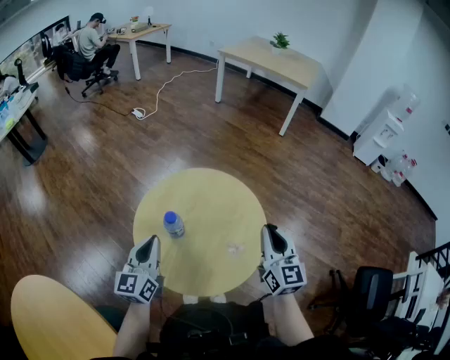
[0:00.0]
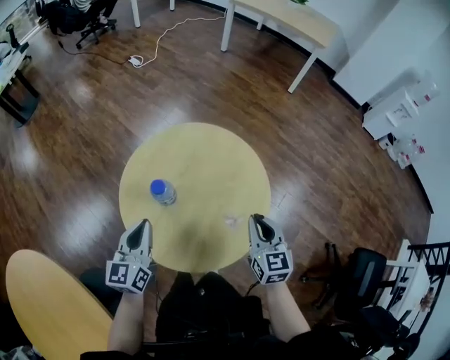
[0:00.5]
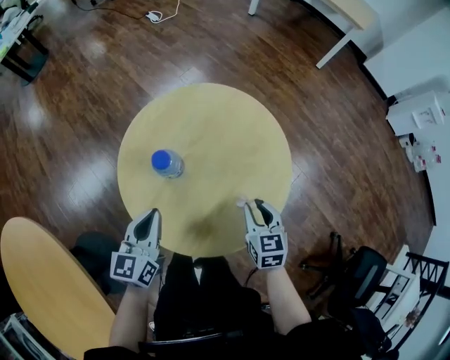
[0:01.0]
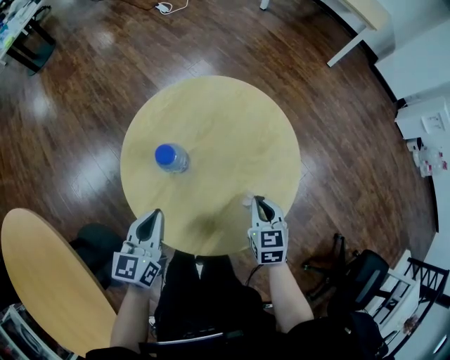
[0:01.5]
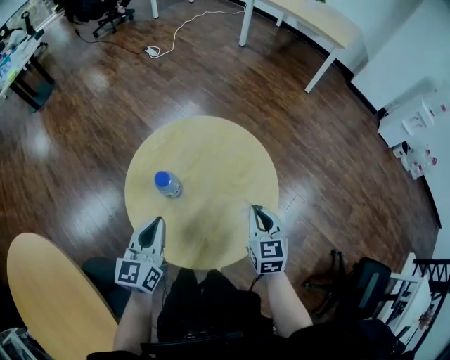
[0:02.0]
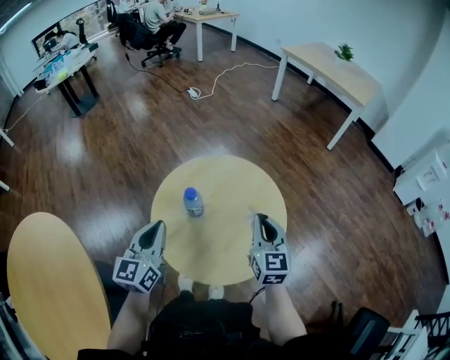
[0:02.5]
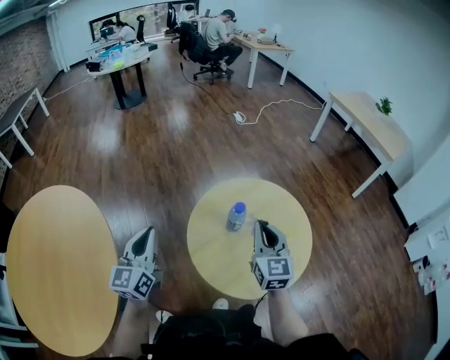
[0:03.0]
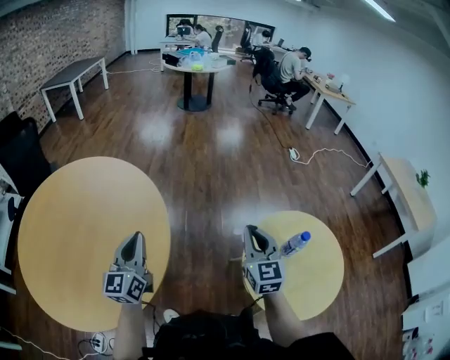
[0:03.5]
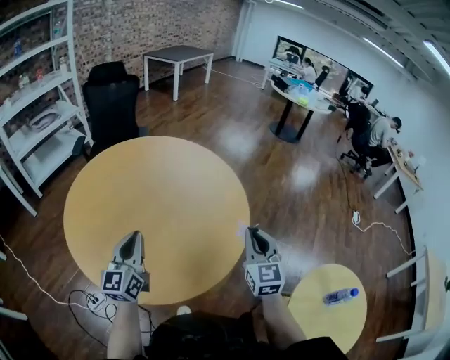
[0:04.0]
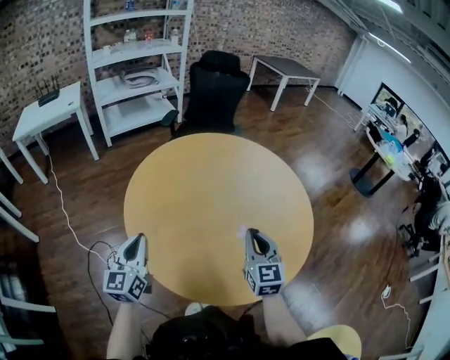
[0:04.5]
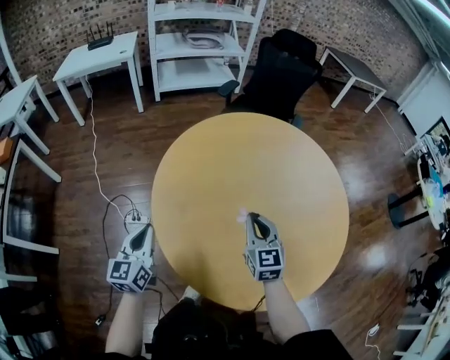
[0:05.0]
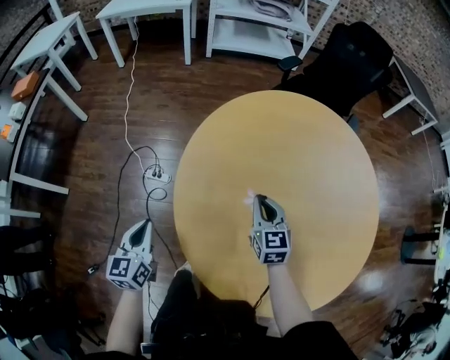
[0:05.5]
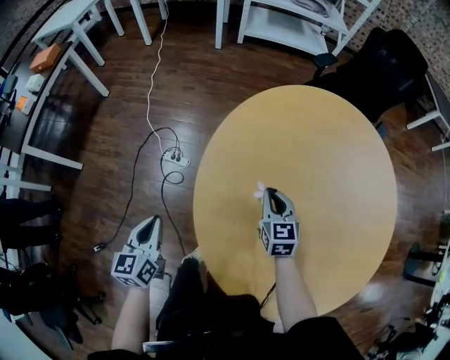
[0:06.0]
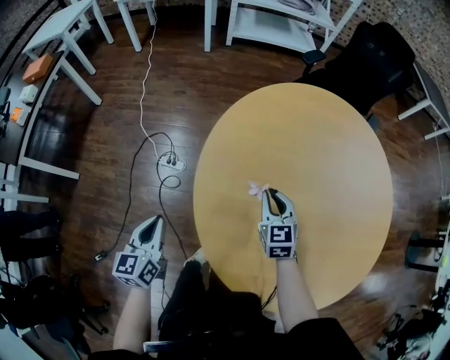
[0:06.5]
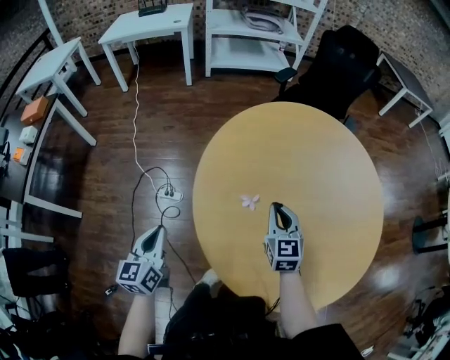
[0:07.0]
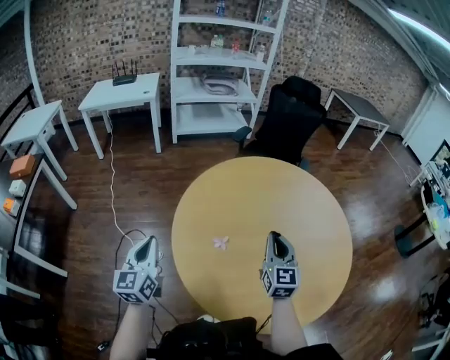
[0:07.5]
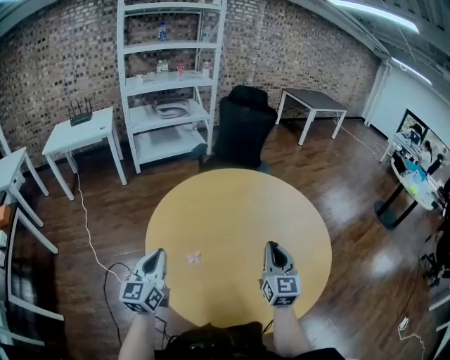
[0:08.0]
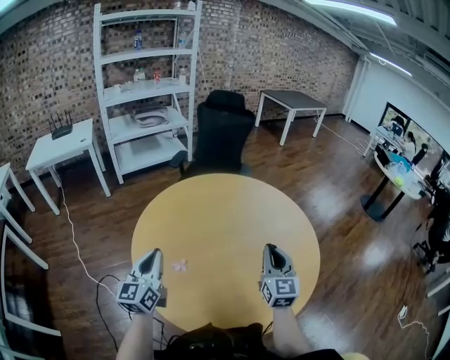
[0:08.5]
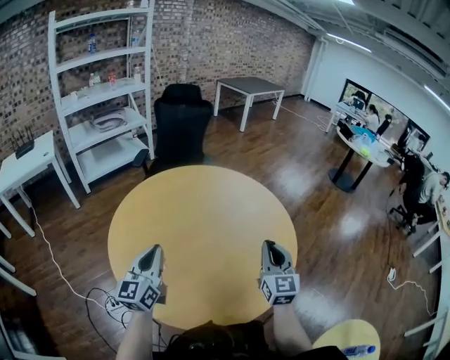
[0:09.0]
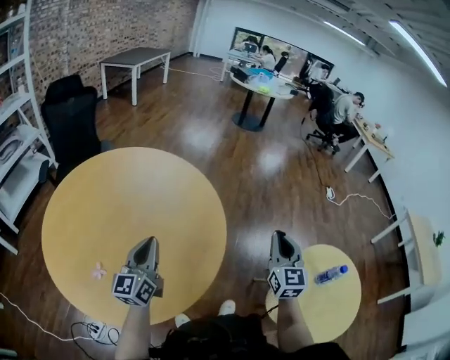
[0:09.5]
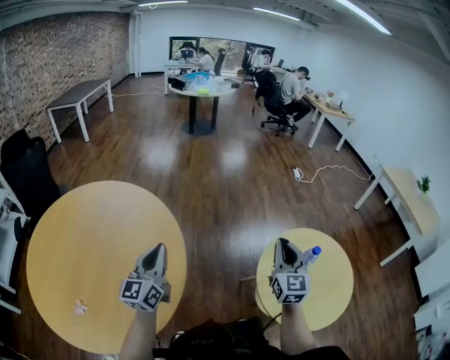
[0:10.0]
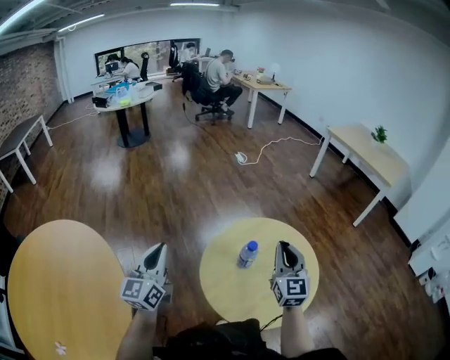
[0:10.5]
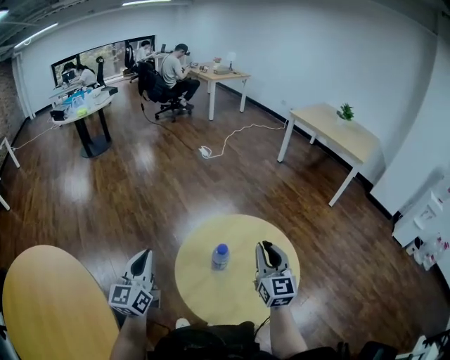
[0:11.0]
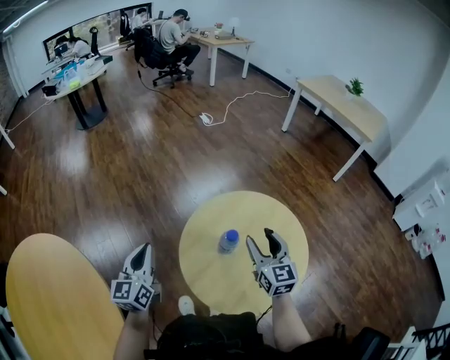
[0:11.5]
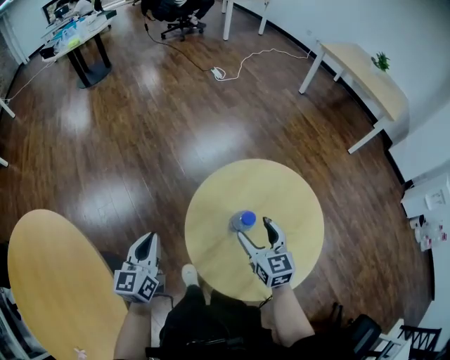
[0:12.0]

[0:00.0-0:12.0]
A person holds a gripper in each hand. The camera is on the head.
0:00.0 to 0:02.0: The right gripper heads downward, covering some 15 cm, and swivels about 20 degrees, while the left gripper goes roughly 5 cm downward.
0:02.0 to 0:04.0: The pair of grippers is taken some 70 cm. The left gripper turns by roughly 90 degrees, while the right gripper swivels approximately 80 degrees.
0:04.0 to 0:06.0: The left gripper ends up roughly 40 cm from where it was, and angles its fingers downward, by some 30 degrees; the right gripper ends up roughly 50 cm from where it was, and rotates approximately 70 degrees.
0:06.0 to 0:08.0: The grippers both shift upward by roughly 20 cm. The right gripper changes its angle by approximately 50 degrees, while the left gripper turns by about 40 degrees.
0:08.0 to 0:10.0: The right gripper moves about 60 cm, and rotates approximately 70 degrees; the left gripper ends up roughly 50 cm from where it was, and swivels roughly 70 degrees.
0:10.0 to 0:12.0: The right gripper ends up roughly 30 cm from where it was, turns by some 30 degrees, and opens its fingers. The left gripper moves some 40 cm, and rotates some 40 degrees.

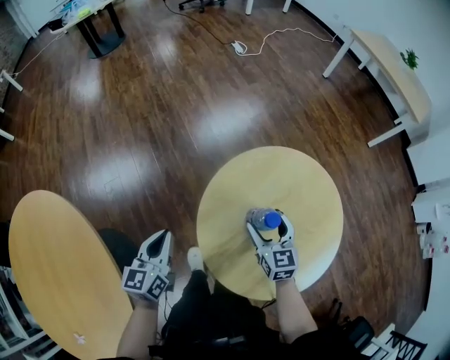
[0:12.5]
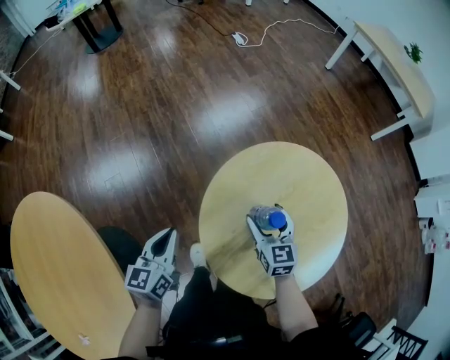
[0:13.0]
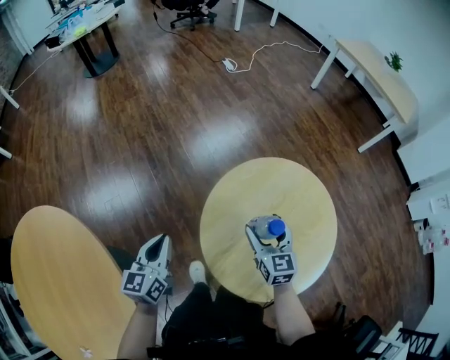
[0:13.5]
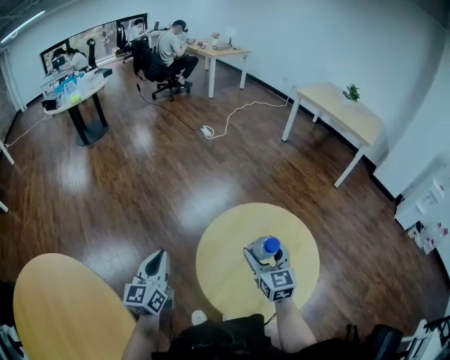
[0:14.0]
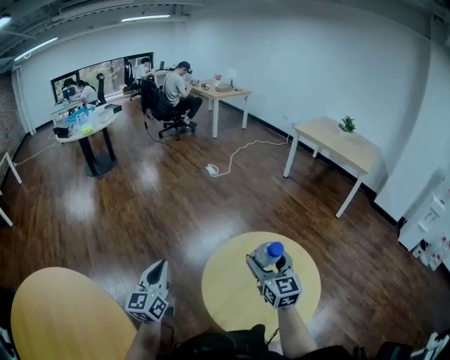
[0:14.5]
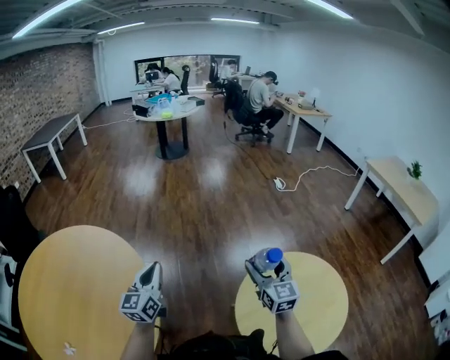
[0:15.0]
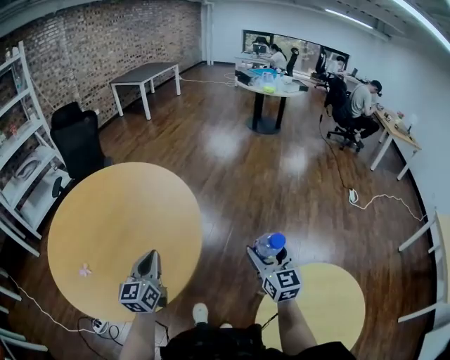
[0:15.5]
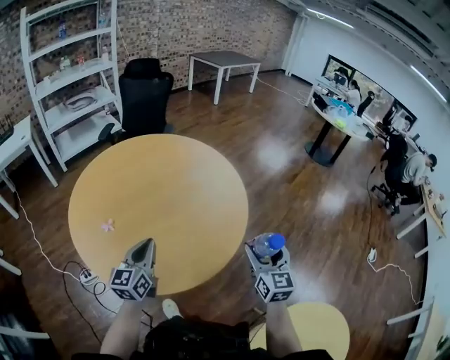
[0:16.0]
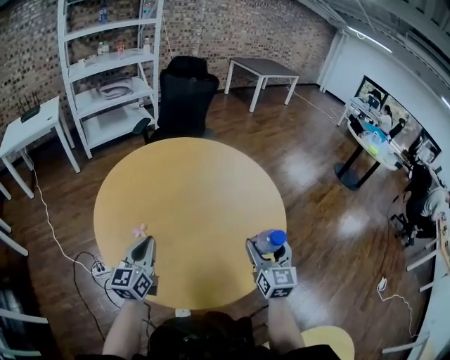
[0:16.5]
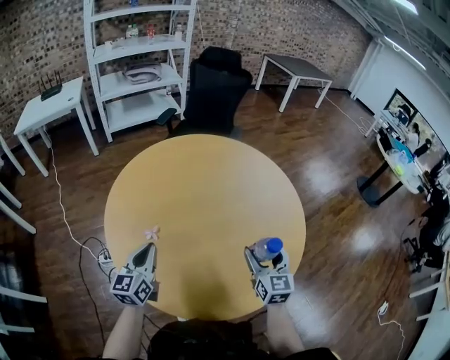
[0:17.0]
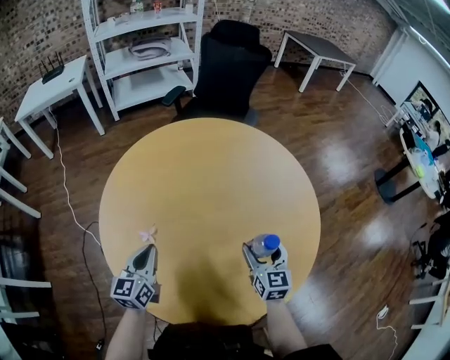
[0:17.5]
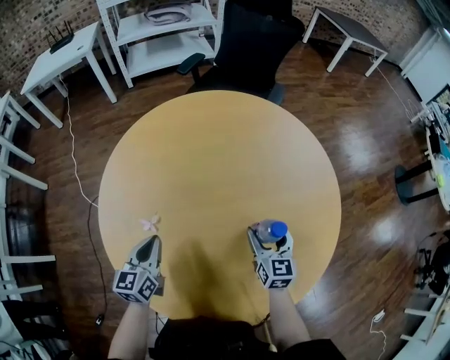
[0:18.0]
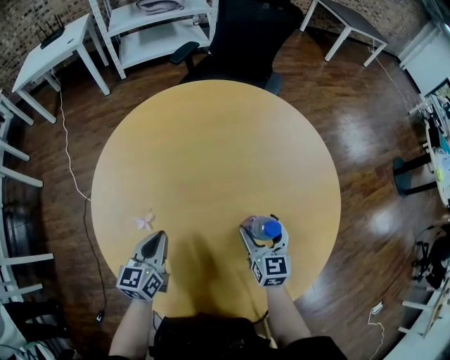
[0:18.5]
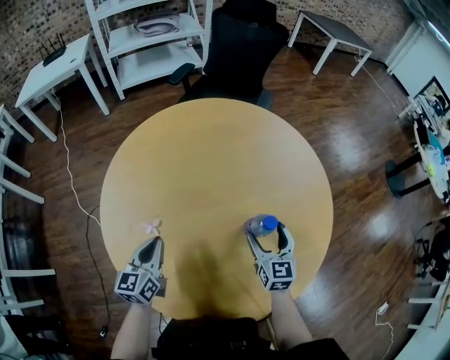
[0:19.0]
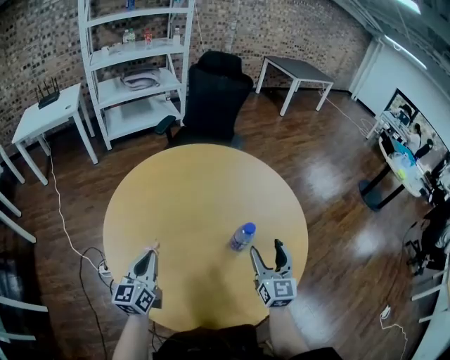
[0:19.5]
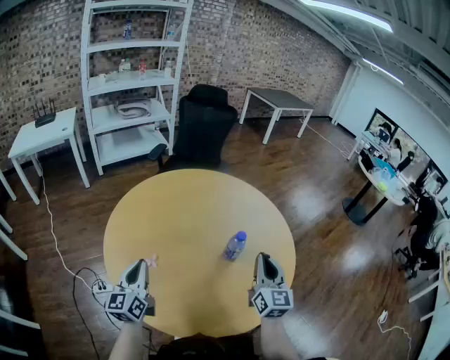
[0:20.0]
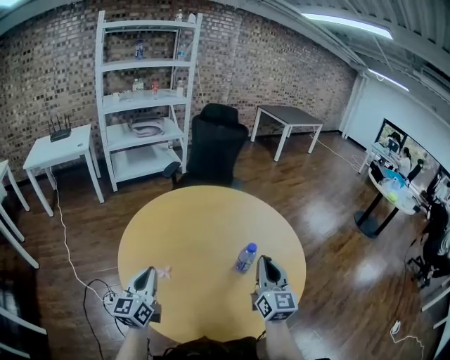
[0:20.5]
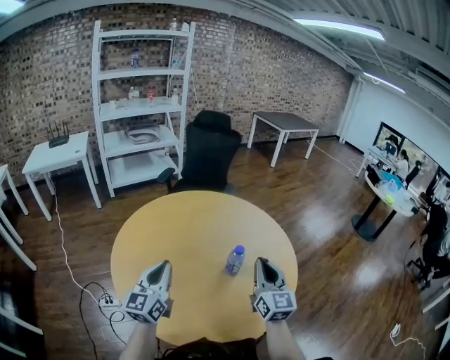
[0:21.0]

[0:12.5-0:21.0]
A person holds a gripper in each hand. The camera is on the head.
0:12.5 to 0:14.5: The two grippers go roughly 20 cm upward. The left gripper rotates some 30 degrees. The right gripper changes its angle by about 20 degrees.
0:14.5 to 0:16.5: The right gripper ends up about 70 cm from where it was, and swivels roughly 80 degrees. The left gripper moves about 70 cm, and rotates some 90 degrees.
0:16.5 to 0:19.0: The right gripper moves forward and downward, approximately 20 cm, and turns by approximately 20 degrees, while the left gripper is displaced downward and forward by about 10 cm, and turns by some 20 degrees.
0:19.0 to 0:21.0: The right gripper shifts some 25 cm upward and backward, rotates about 30 degrees, and closes its fingers. Meanwhile the left gripper is displaced upward by about 15 cm, and changes its angle by some 30 degrees.

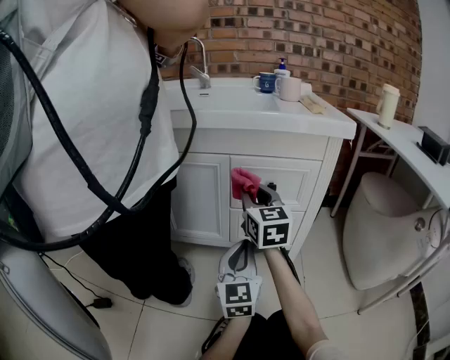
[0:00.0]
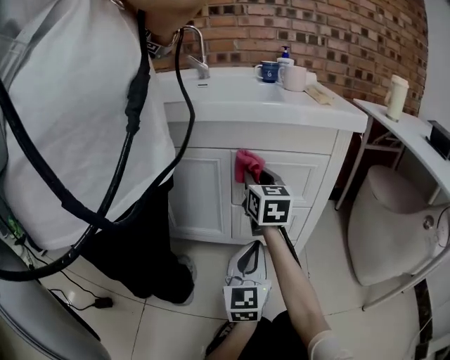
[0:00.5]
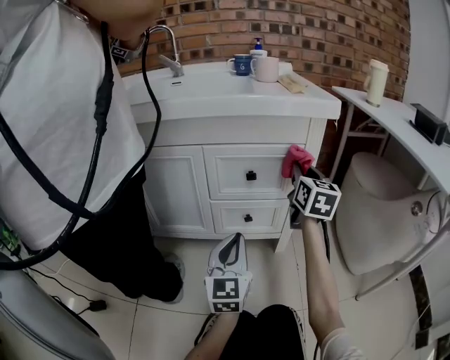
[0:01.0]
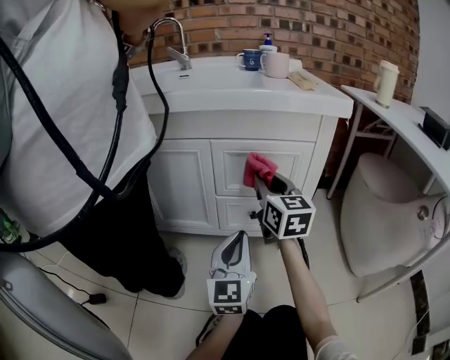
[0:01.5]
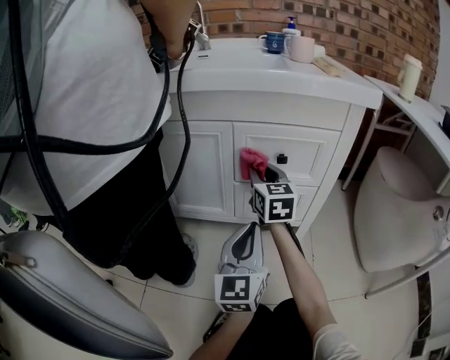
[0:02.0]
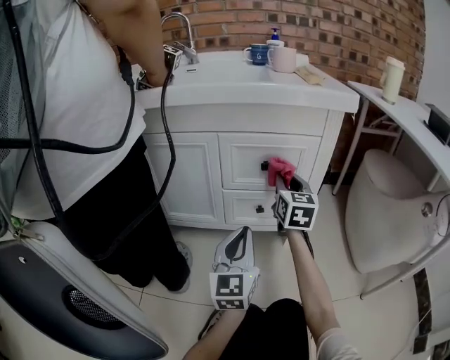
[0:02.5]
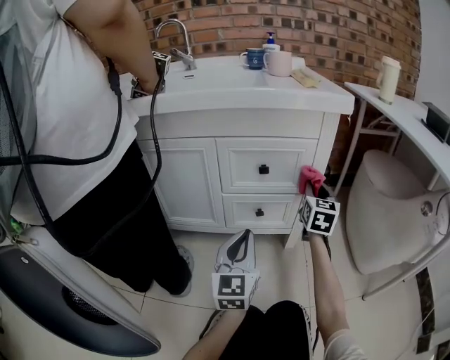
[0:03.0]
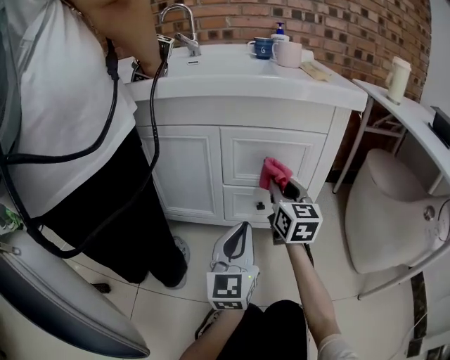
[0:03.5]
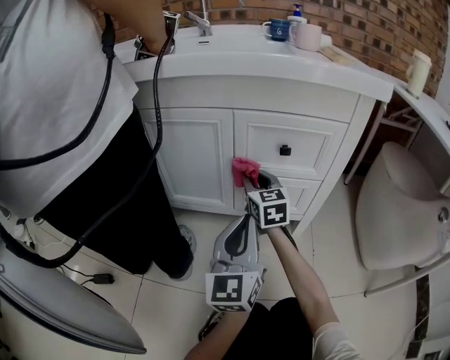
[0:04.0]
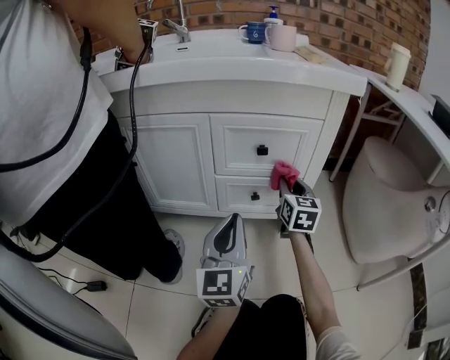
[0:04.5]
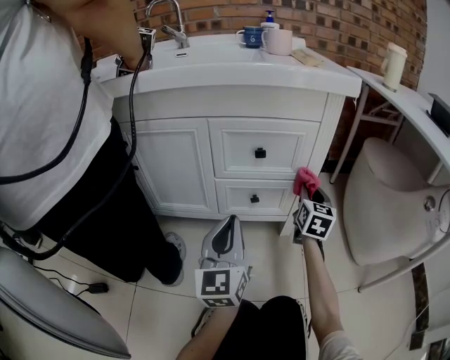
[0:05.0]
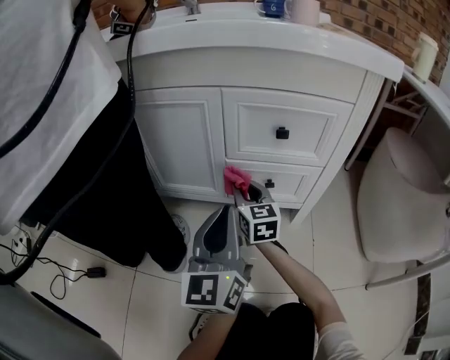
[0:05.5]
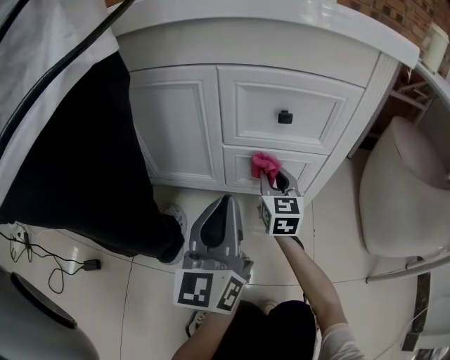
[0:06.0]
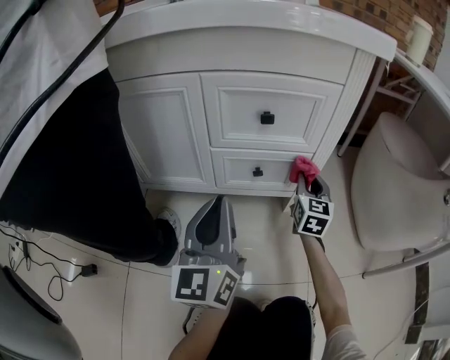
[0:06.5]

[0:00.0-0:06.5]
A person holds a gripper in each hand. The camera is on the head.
0:00.0 to 0:02.0: The right gripper goes some 10 cm downward and forward, and reaches roughly 25 cm to the right, then returns.
0:02.0 to 0:04.5: The right gripper goes left and right, some 25 cm each way, reversing 2 times.
0:04.5 to 0:06.5: The right gripper swings left and right, about 25 cm each way, with 2 reversals.
